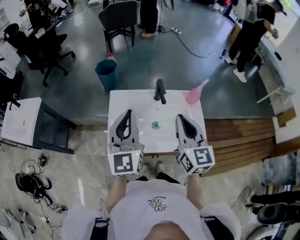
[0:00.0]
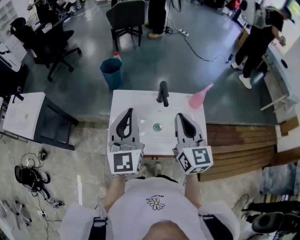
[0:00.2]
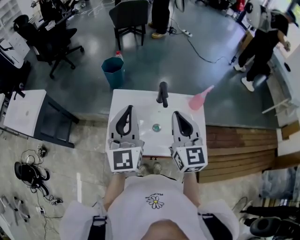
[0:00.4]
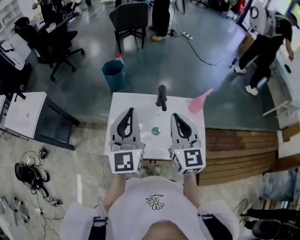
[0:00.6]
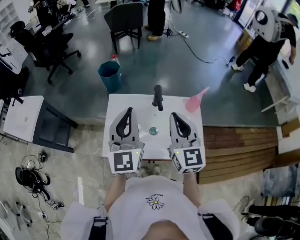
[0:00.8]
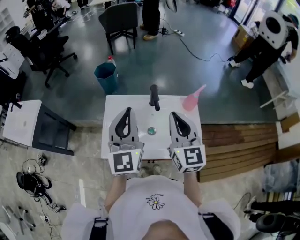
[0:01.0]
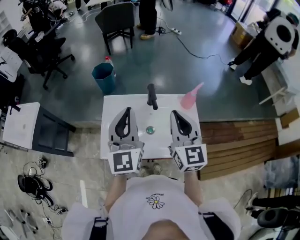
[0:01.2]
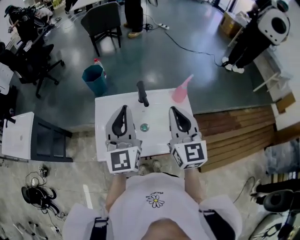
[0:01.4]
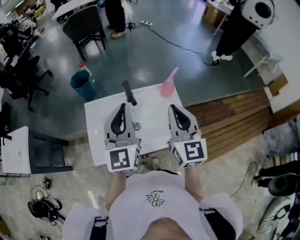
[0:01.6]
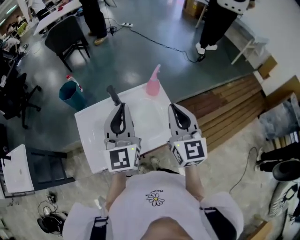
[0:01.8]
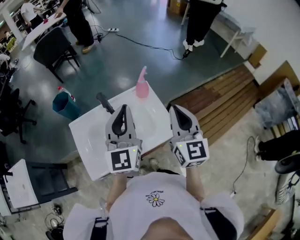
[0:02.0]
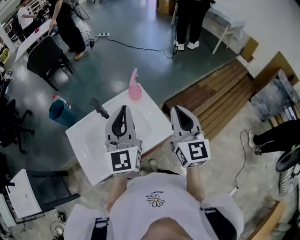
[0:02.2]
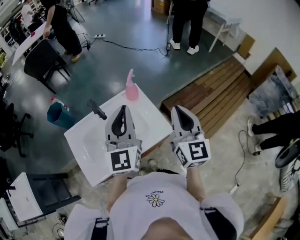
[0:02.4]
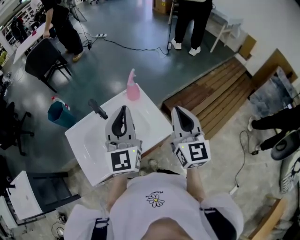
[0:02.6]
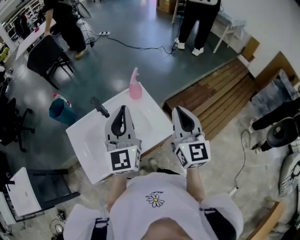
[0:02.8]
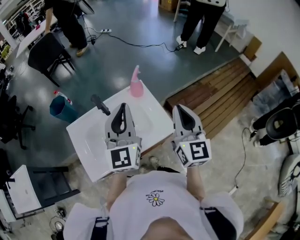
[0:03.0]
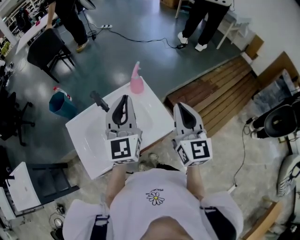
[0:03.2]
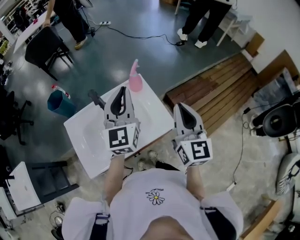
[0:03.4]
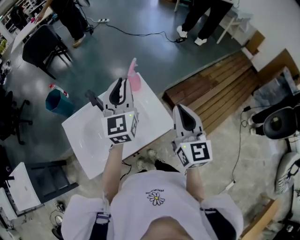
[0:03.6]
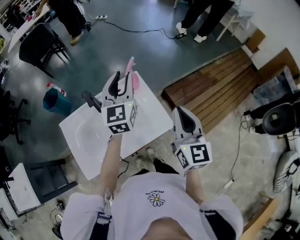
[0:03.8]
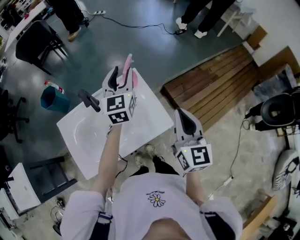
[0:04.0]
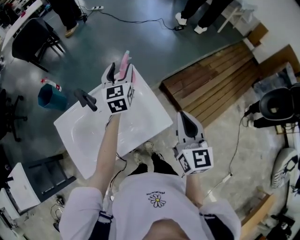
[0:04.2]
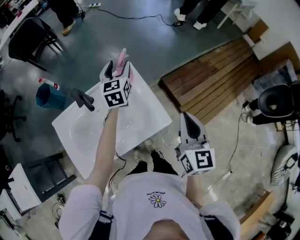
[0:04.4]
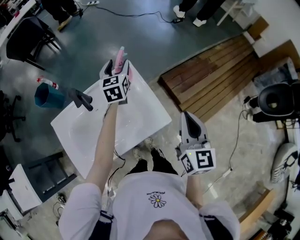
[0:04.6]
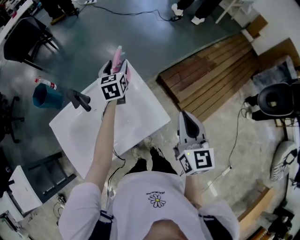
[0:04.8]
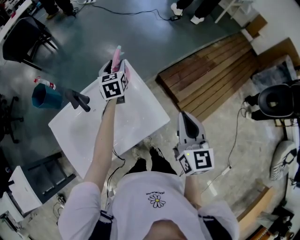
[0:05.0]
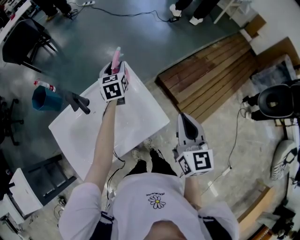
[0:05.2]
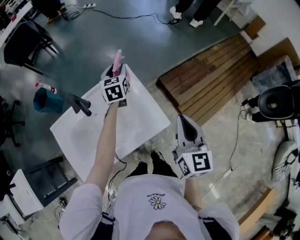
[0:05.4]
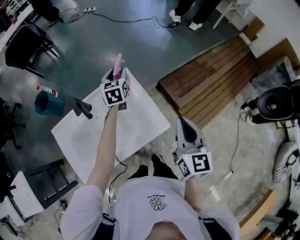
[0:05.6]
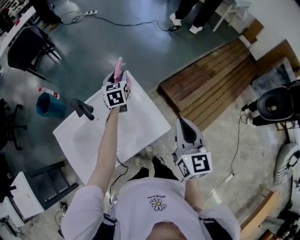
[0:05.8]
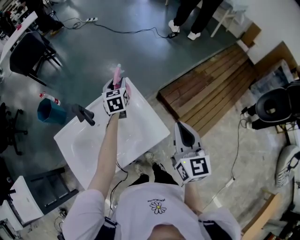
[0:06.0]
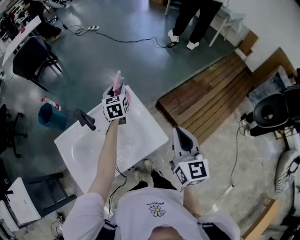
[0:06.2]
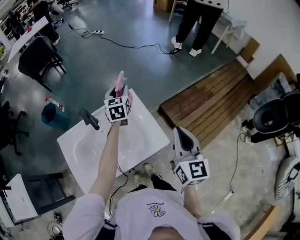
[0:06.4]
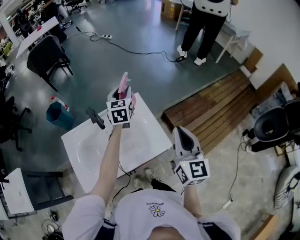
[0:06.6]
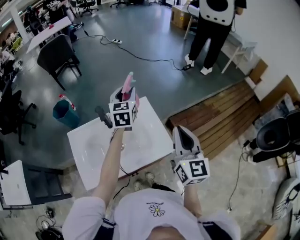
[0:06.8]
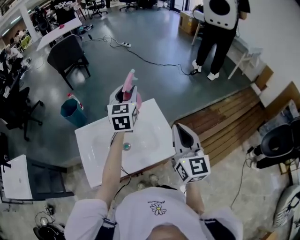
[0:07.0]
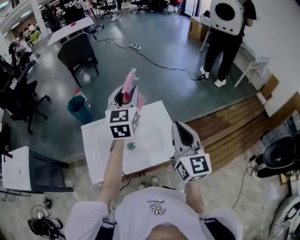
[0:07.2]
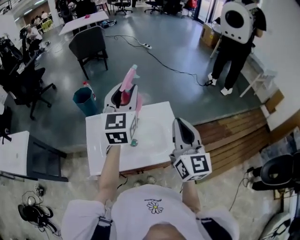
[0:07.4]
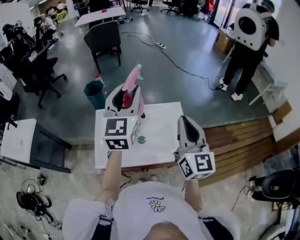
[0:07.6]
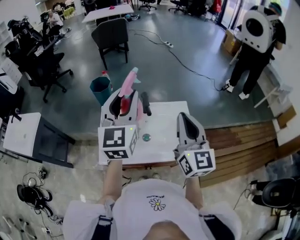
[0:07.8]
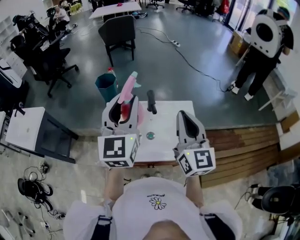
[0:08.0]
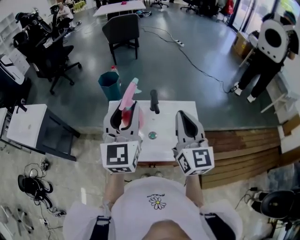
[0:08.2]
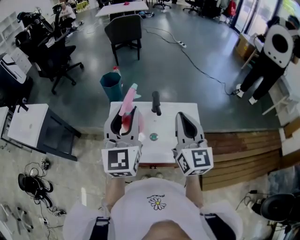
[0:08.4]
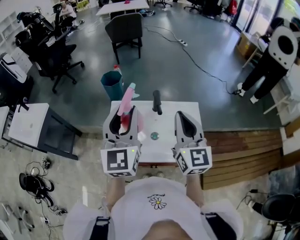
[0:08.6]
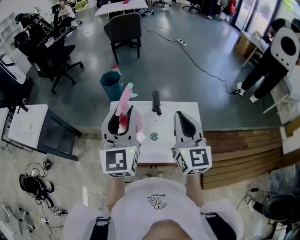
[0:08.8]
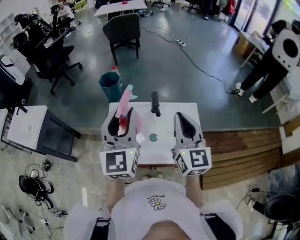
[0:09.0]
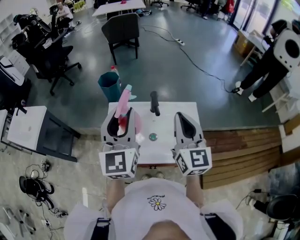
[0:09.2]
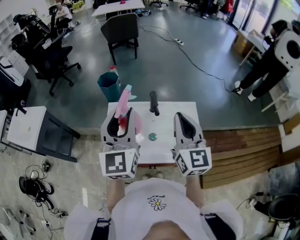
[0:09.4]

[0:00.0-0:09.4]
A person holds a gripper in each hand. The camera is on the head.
0:00.0 to 0:01.6: Both grippers travel together to the right, about 10 cm.
0:01.6 to 0:03.2: Both grippers travel together to the right, some 15 cm. The right gripper turns by roughly 20 degrees.
0:03.2 to 0:04.8: The right gripper moves downward and to the right, about 10 cm; the left gripper is displaced forward and downward by roughly 35 cm, turns by about 30 degrees, and opens its fingers.
0:04.8 to 0:06.2: The left gripper closes its fingers.
0:06.2 to 0:07.8: The left gripper changes place by about 50 cm, and tips its fingers upward by approximately 30 degrees. Meanwhile the right gripper ends up about 25 cm from where it was, and swivels roughly 30 degrees.
0:07.8 to 0:09.4: The right gripper shifts by about 5 cm. Meanwhile the left gripper changes place by some 5 cm.

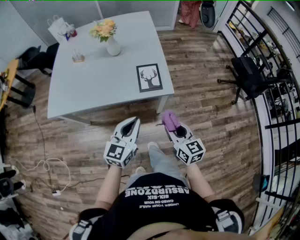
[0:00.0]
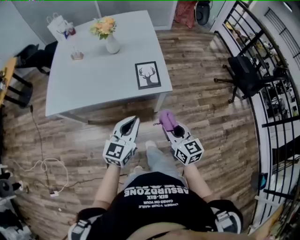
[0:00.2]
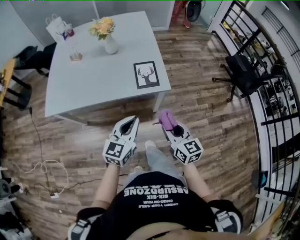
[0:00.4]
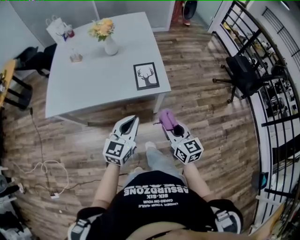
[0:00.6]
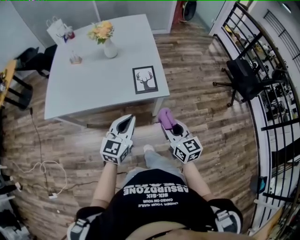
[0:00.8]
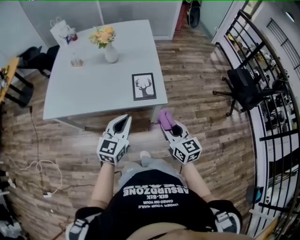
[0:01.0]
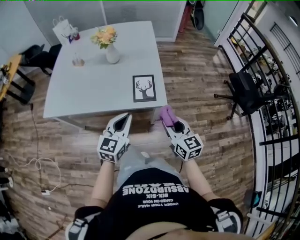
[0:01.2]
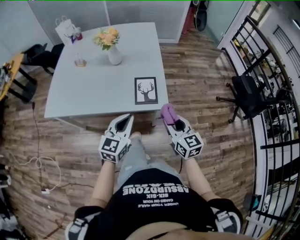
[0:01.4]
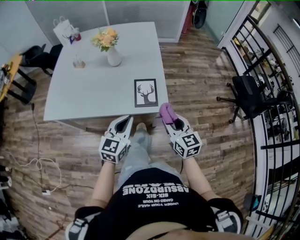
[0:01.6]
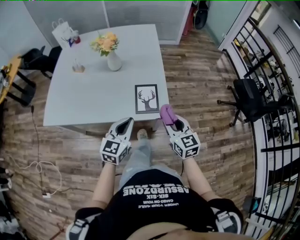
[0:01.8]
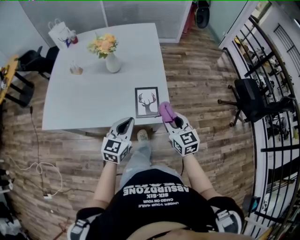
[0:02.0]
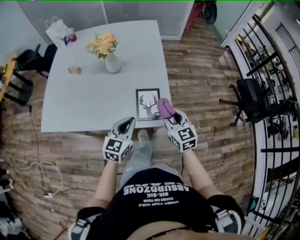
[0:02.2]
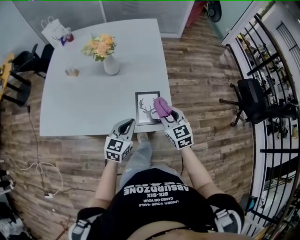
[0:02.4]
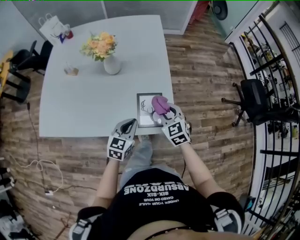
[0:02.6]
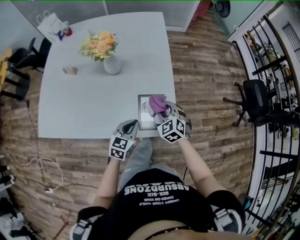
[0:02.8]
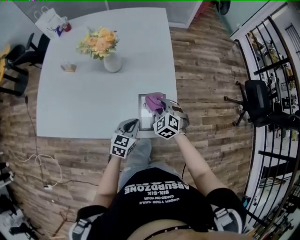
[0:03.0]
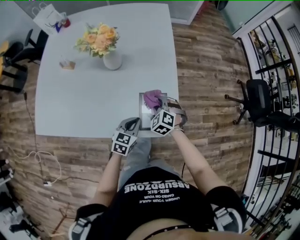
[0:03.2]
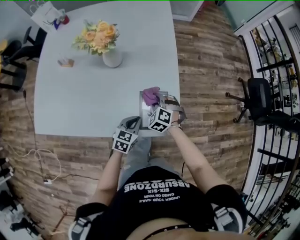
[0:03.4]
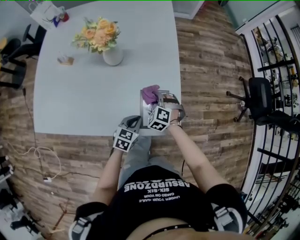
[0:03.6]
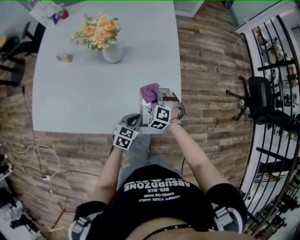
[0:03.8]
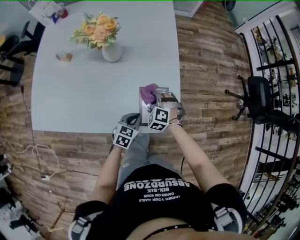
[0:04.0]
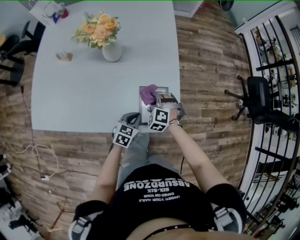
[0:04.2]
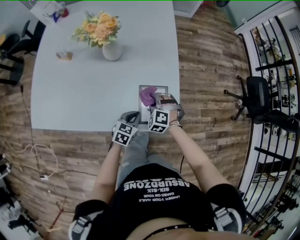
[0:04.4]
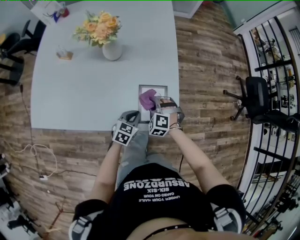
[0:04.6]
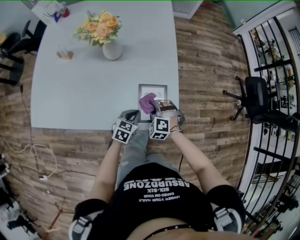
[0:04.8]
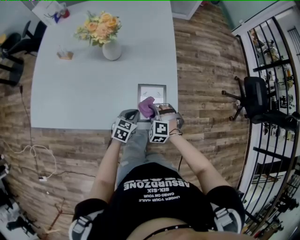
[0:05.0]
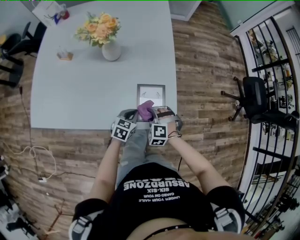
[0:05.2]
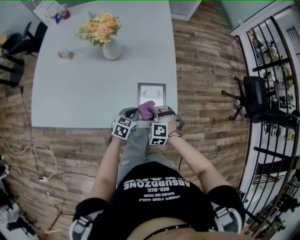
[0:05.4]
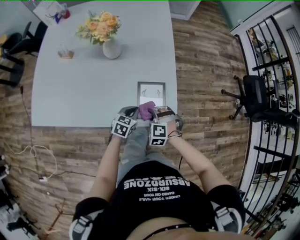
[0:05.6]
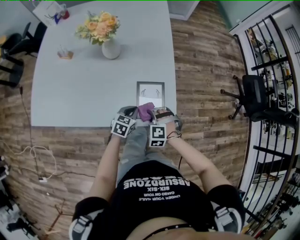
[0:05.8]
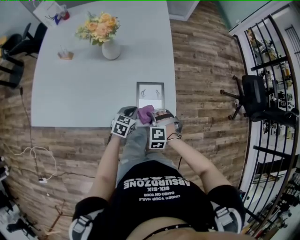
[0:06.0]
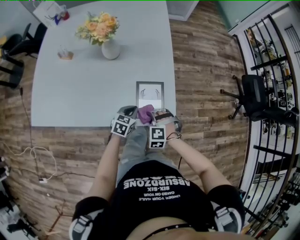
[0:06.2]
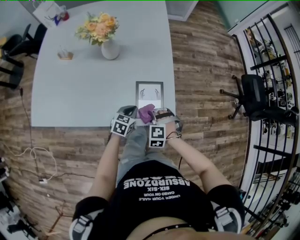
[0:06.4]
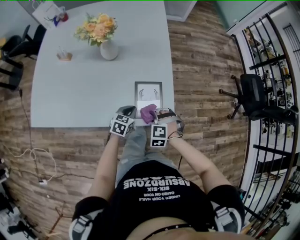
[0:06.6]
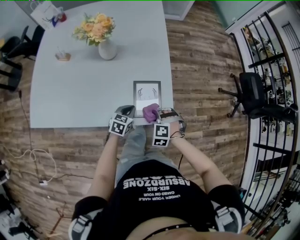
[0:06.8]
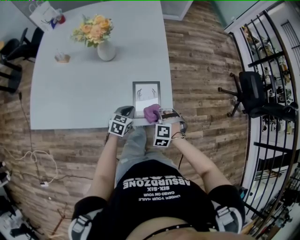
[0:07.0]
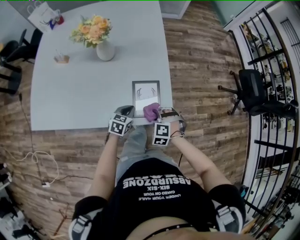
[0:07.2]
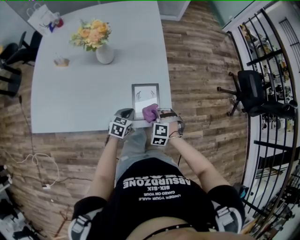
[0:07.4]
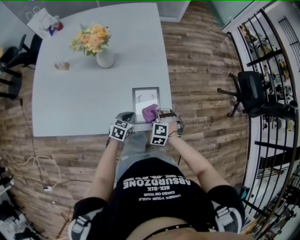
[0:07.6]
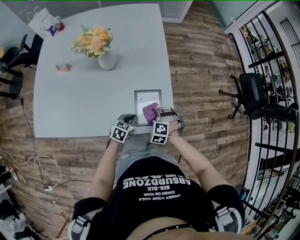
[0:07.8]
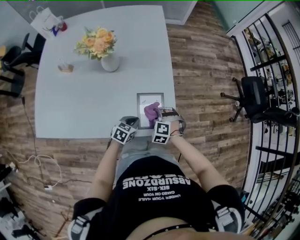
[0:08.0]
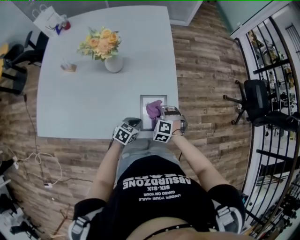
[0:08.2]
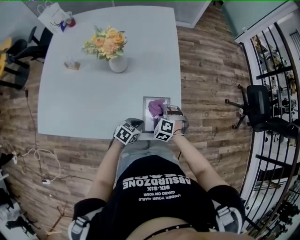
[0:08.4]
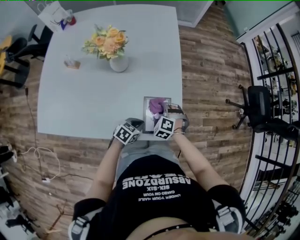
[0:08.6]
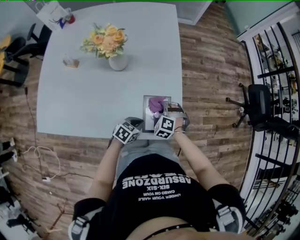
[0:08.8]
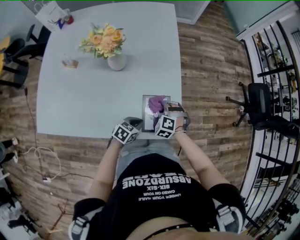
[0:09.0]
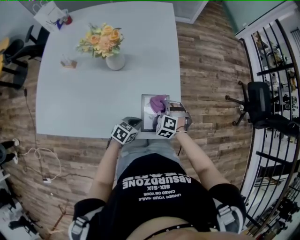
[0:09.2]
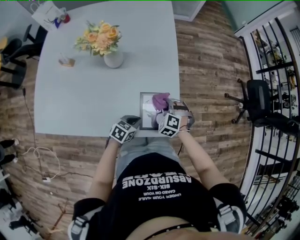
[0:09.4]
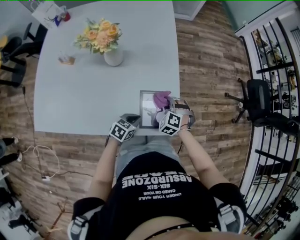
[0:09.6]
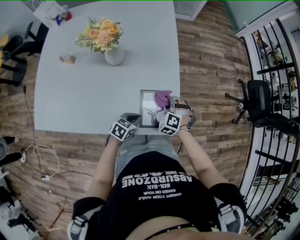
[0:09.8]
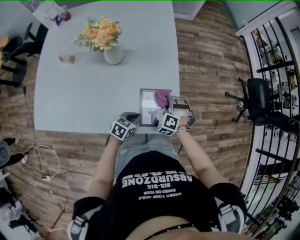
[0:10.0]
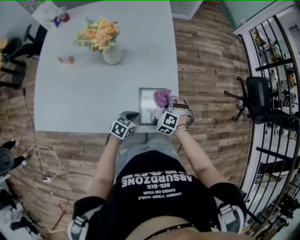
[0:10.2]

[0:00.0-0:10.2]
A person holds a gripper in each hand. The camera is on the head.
0:00.0 to 0:01.4: Both grippers travel together forward, some 10 cm.
0:01.4 to 0:03.0: The grippers both shift forward and downward by roughly 30 cm. The left gripper turns by roughly 20 degrees. Meanwhile the right gripper angles its fingers downward, by roughly 30 degrees.
0:03.0 to 0:04.4: The grippers both shift downward by some 10 cm. The right gripper swivels about 20 degrees.
0:04.4 to 0:05.8: The right gripper is displaced backward by about 10 cm.
0:05.8 to 0:07.2: There are only small adjustments of the grippers.
0:07.2 to 0:08.8: The right gripper heads forward and to the left, covering some 15 cm.
0:08.8 to 0:10.2: The right gripper heads to the right, covering about 5 cm.

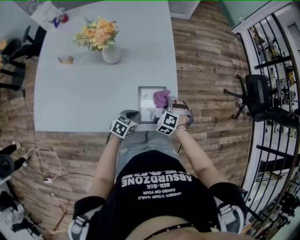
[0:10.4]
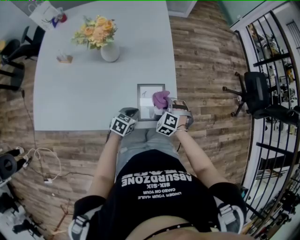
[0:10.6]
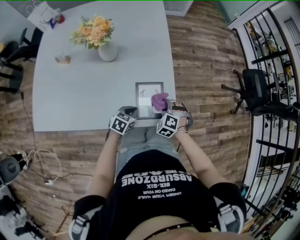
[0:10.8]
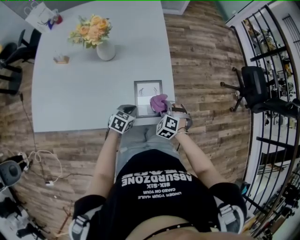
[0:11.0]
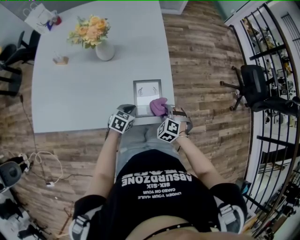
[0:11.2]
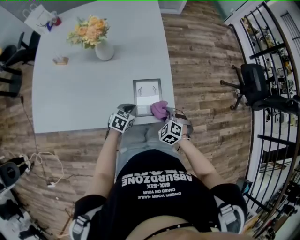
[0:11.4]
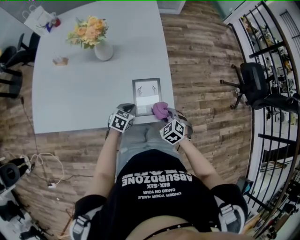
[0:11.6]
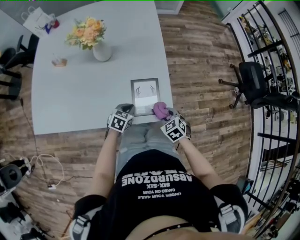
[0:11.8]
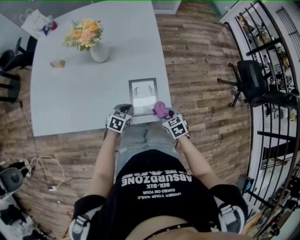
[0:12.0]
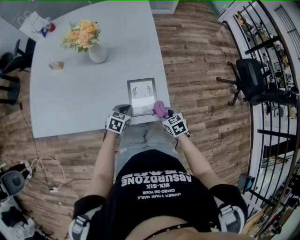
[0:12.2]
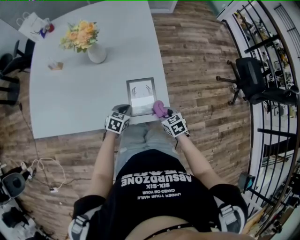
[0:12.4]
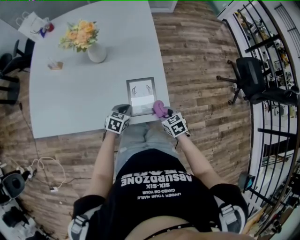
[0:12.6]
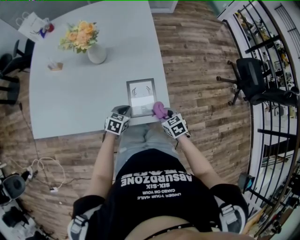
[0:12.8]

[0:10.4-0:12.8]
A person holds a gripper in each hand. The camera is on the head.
0:10.4 to 0:11.6: The right gripper travels backward and to the right by some 10 cm, and rotates some 30 degrees.
0:11.6 to 0:12.8: The right gripper swivels roughly 30 degrees.

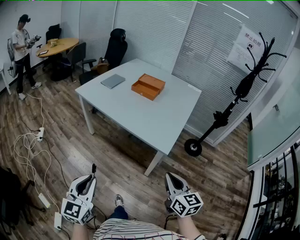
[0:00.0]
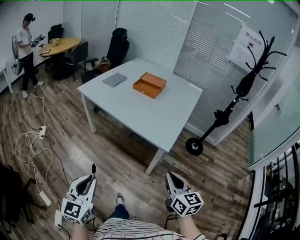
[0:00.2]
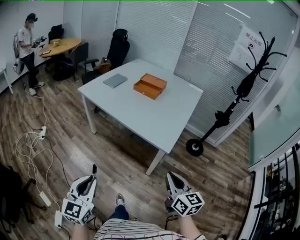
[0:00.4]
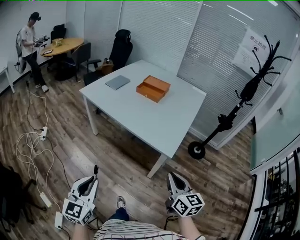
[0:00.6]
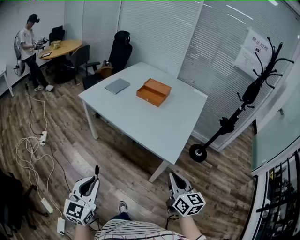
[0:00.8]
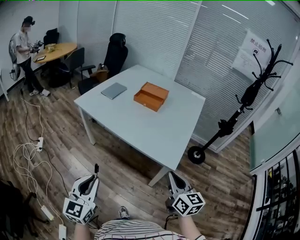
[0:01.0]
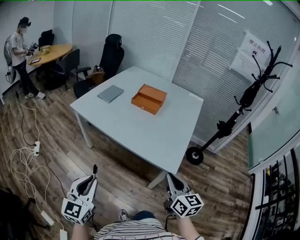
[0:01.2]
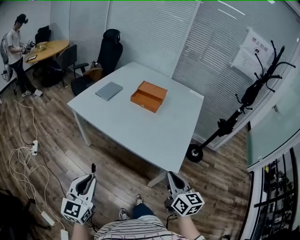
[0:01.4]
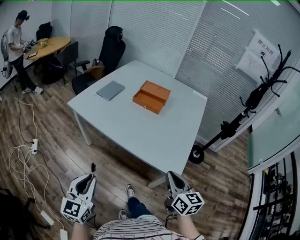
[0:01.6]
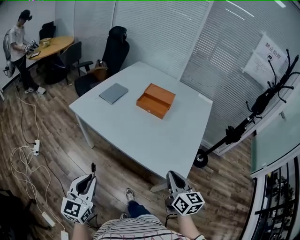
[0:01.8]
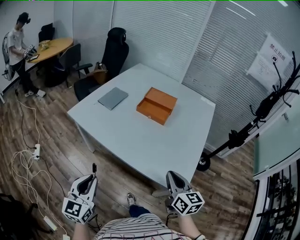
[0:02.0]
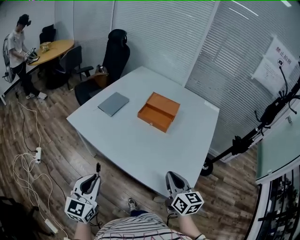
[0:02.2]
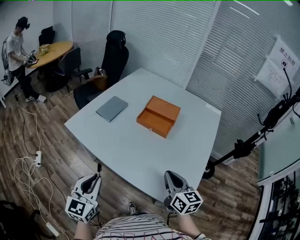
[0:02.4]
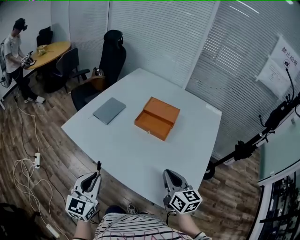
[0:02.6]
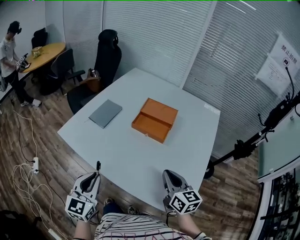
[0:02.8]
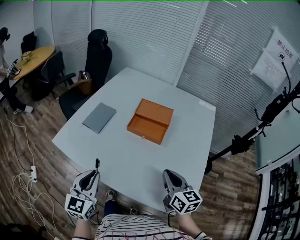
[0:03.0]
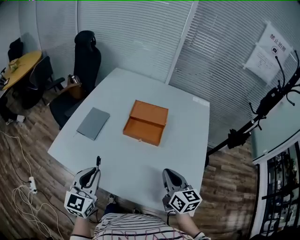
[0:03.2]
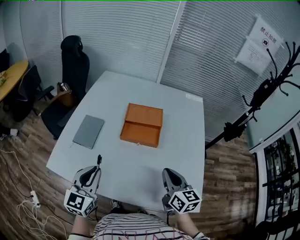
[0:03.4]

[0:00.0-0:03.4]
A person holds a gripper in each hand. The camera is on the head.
0:00.0 to 0:01.6: Both grippers travel together forward, about 20 cm.
0:01.6 to 0:03.4: The grippers both shift forward by approximately 40 cm. The left gripper swivels some 20 degrees.
